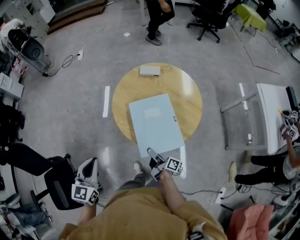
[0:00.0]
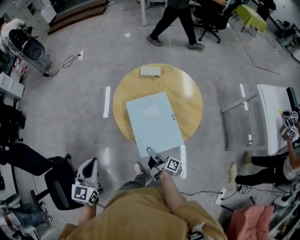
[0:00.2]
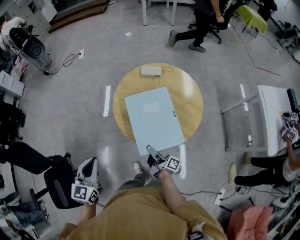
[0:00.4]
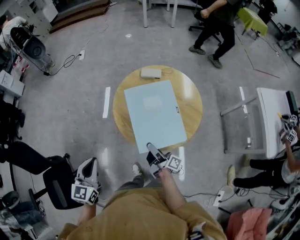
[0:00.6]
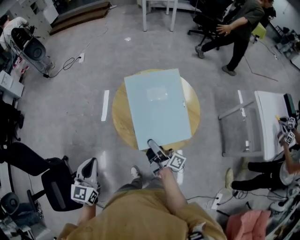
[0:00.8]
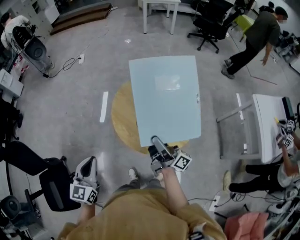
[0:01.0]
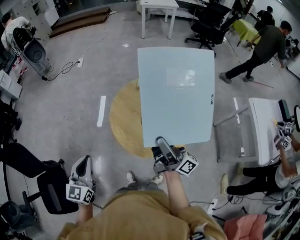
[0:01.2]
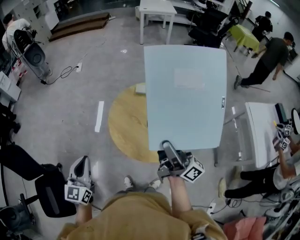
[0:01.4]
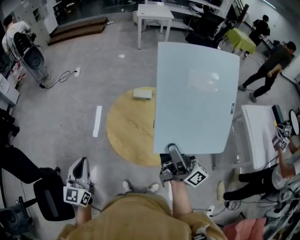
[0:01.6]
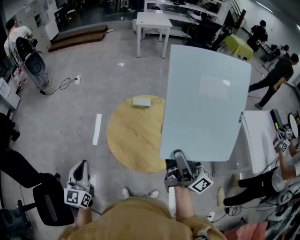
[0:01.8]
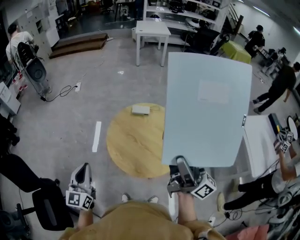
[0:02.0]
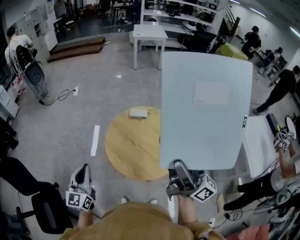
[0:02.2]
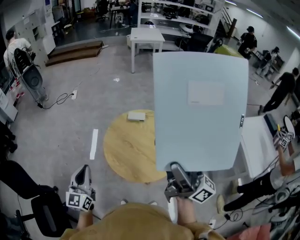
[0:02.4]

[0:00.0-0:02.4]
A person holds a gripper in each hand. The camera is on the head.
0:00.0 to 0:01.2: The right gripper goes about 35 cm upward, and points its fingers some 30 degrees further upward, while the left gripper heads upward, covering approximately 5 cm.
0:01.2 to 0:02.4: The right gripper travels upward and backward by about 20 cm, and changes its angle by some 20 degrees. The left gripper is displaced upward by approximately 5 cm.

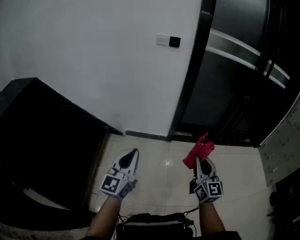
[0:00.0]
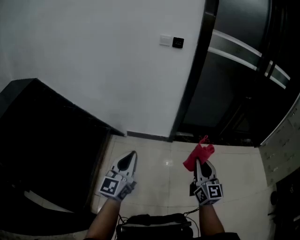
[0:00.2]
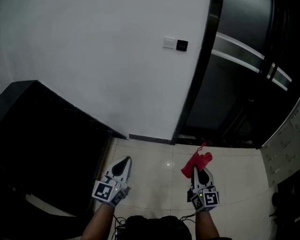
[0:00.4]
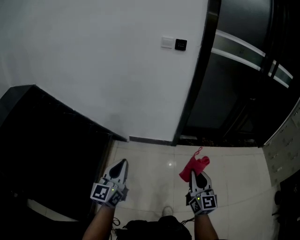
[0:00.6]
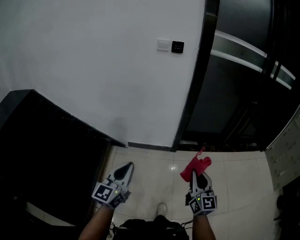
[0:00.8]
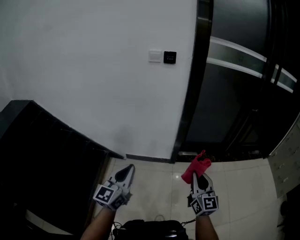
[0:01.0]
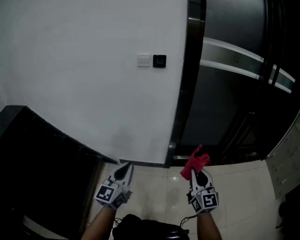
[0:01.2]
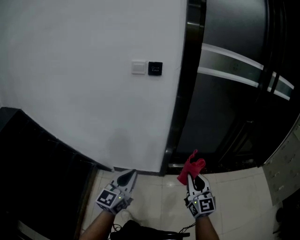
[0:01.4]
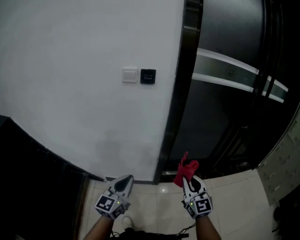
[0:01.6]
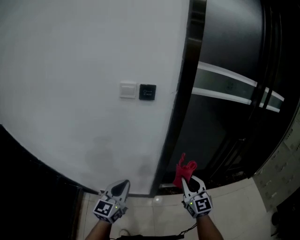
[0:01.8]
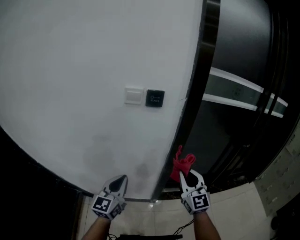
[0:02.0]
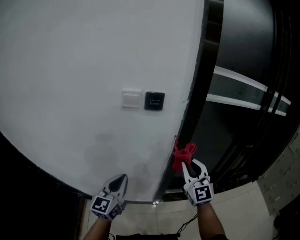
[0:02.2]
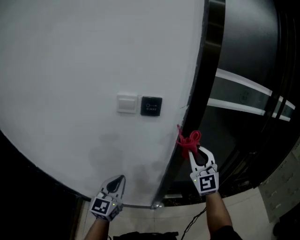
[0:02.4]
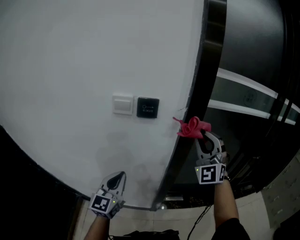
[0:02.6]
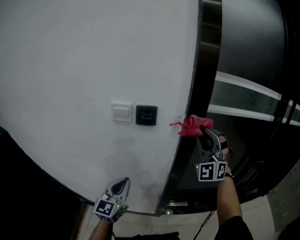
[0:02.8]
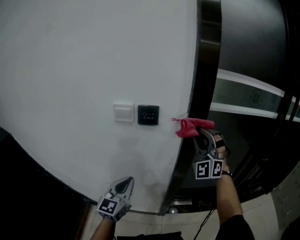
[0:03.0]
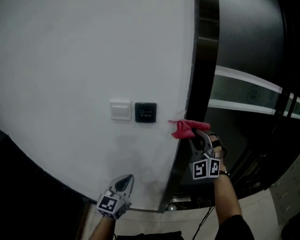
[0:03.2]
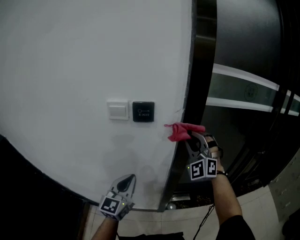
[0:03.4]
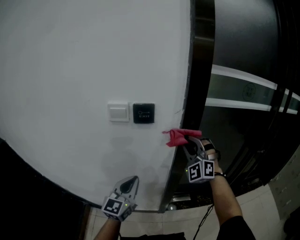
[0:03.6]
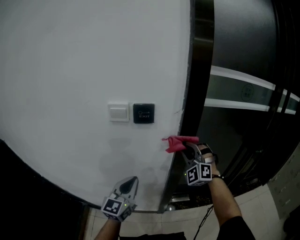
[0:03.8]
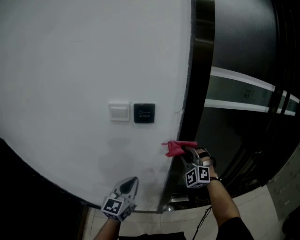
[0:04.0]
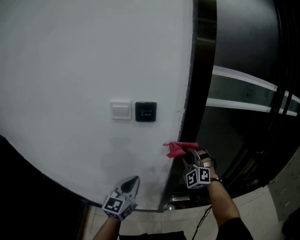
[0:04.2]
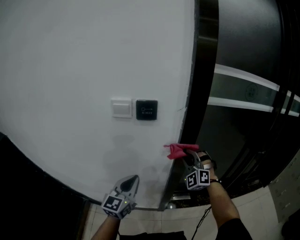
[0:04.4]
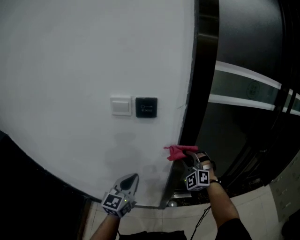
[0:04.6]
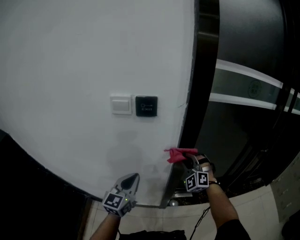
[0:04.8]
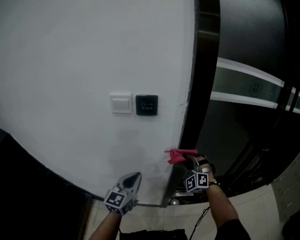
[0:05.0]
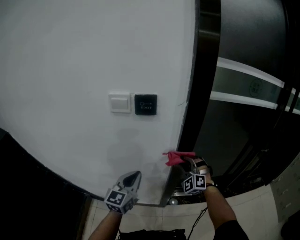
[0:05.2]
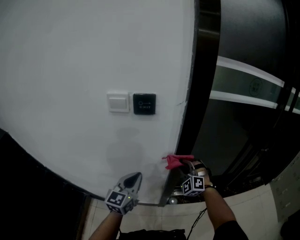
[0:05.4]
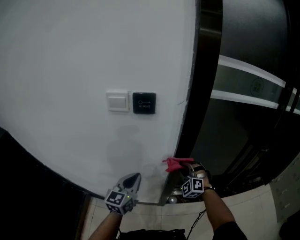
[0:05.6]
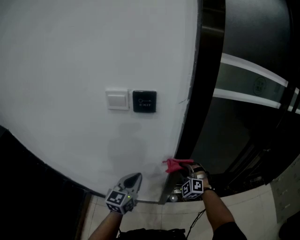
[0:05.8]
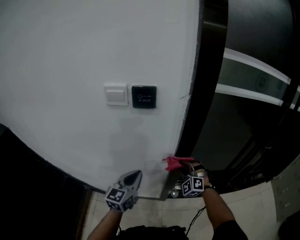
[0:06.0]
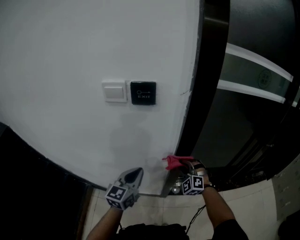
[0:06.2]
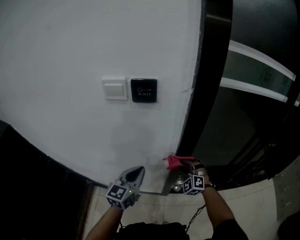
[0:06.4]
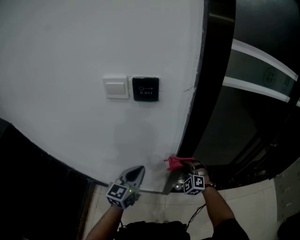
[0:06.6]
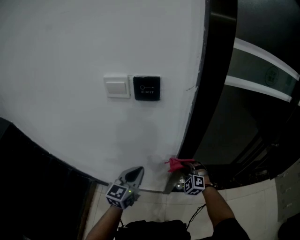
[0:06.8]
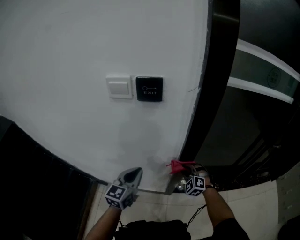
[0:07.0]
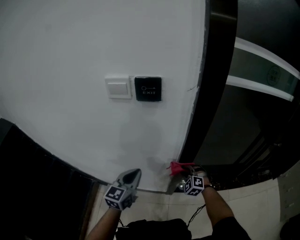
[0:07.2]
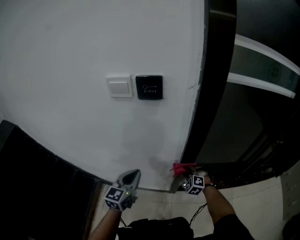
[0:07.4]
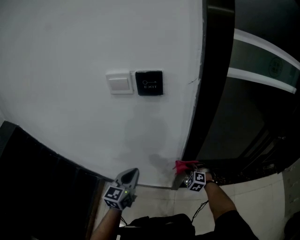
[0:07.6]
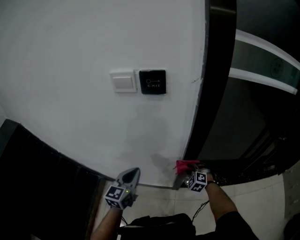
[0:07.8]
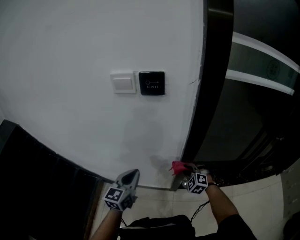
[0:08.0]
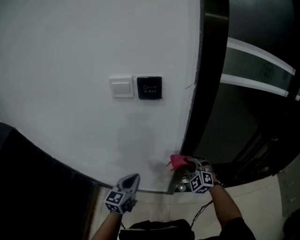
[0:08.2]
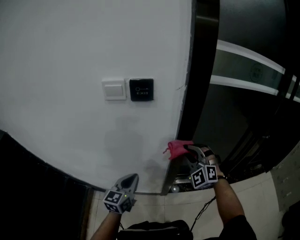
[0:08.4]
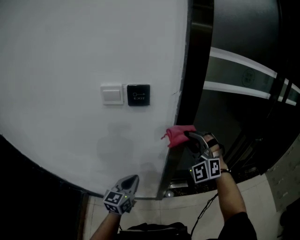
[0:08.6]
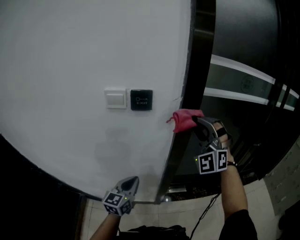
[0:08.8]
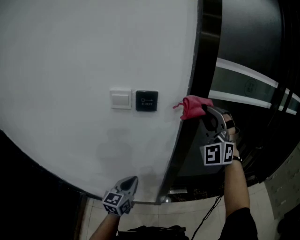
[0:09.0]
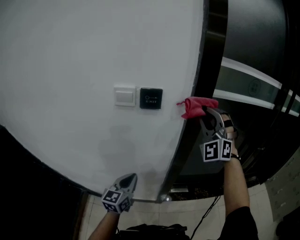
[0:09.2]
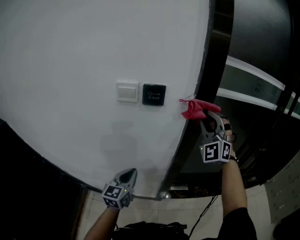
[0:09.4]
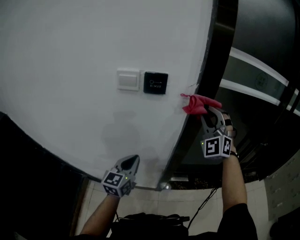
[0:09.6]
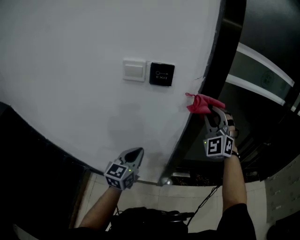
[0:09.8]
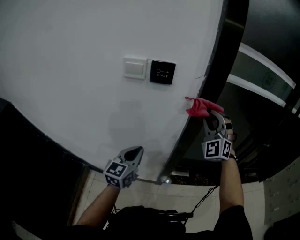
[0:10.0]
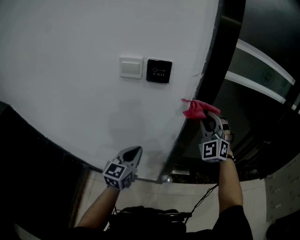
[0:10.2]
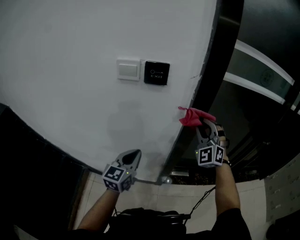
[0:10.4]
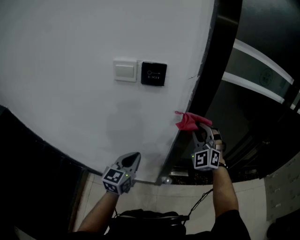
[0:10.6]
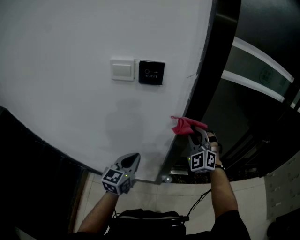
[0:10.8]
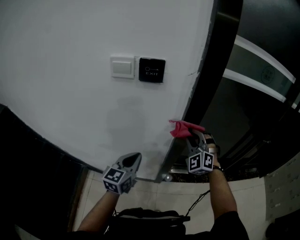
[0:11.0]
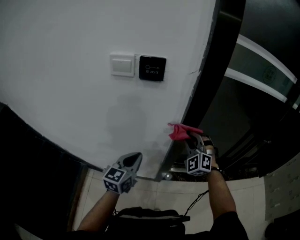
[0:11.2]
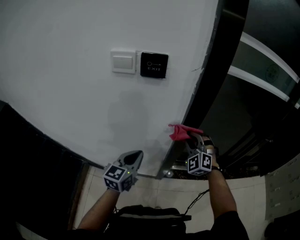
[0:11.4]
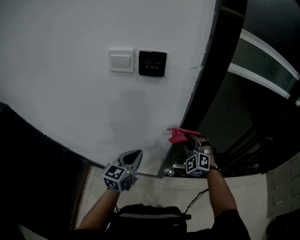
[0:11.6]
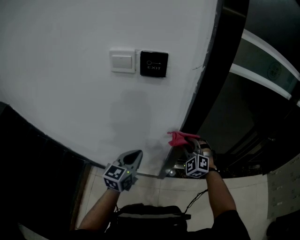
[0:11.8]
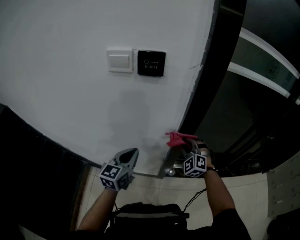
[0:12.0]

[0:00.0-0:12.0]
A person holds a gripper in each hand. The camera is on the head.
0:00.0 to 0:01.6: The two grippers go about 35 cm forward.
0:01.6 to 0:03.0: The left gripper moves forward, about 25 cm, while the right gripper moves forward and upward, approximately 40 cm, and rotates around the line of its fingers by approximately 60 degrees, counterclockwise from behind.
0:03.0 to 0:04.4: The right gripper moves downward, some 15 cm, and rotates approximately 20 degrees.
0:04.4 to 0:06.0: The left gripper travels downward by some 5 cm; the right gripper heads downward, covering some 15 cm.
0:06.0 to 0:07.6: The right gripper goes approximately 15 cm downward, and turns by some 20 degrees. The left gripper is displaced to the left by some 5 cm.
0:07.6 to 0:09.0: The right gripper heads upward, covering about 50 cm, and angles its fingers upward, by about 60 degrees.
0:09.0 to 0:10.4: The right gripper moves downward, some 20 cm, and changes its angle by about 20 degrees.
0:10.4 to 0:12.0: The right gripper moves downward, approximately 20 cm, and swivels about 30 degrees.

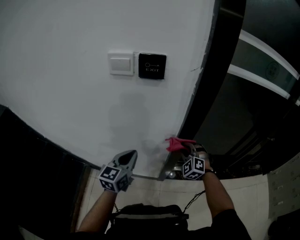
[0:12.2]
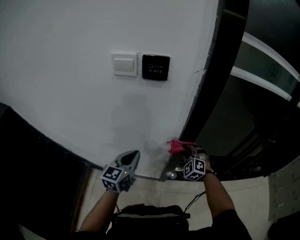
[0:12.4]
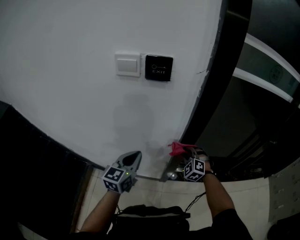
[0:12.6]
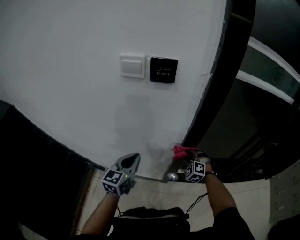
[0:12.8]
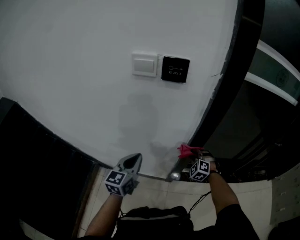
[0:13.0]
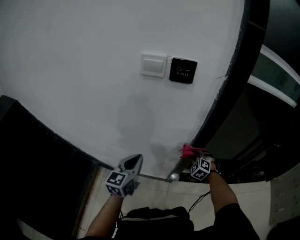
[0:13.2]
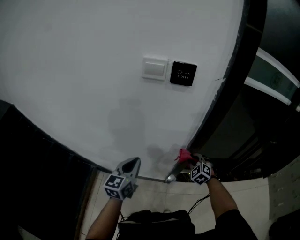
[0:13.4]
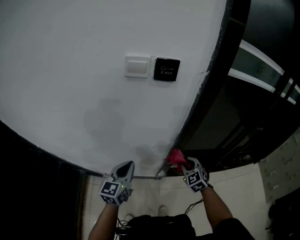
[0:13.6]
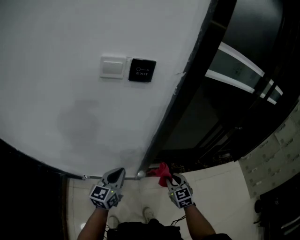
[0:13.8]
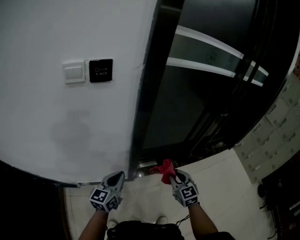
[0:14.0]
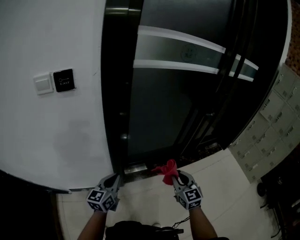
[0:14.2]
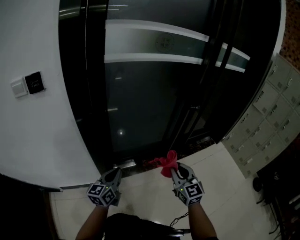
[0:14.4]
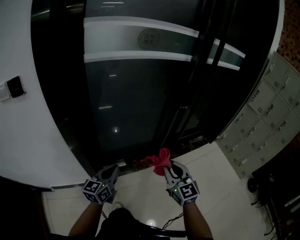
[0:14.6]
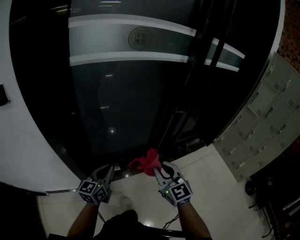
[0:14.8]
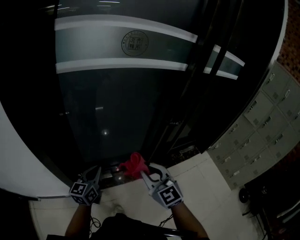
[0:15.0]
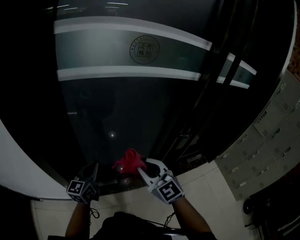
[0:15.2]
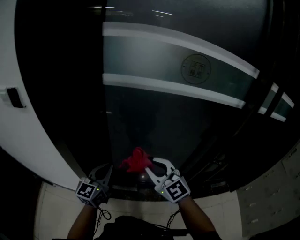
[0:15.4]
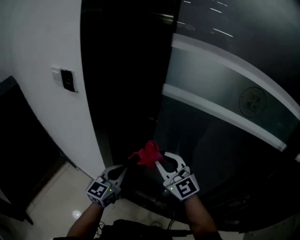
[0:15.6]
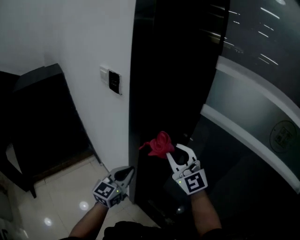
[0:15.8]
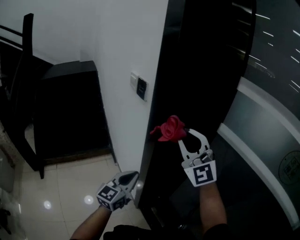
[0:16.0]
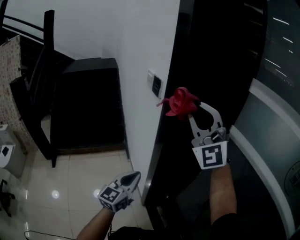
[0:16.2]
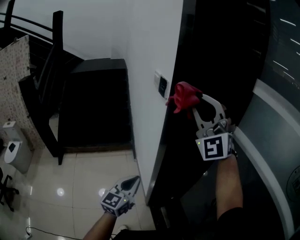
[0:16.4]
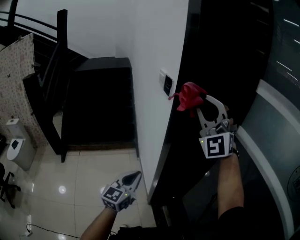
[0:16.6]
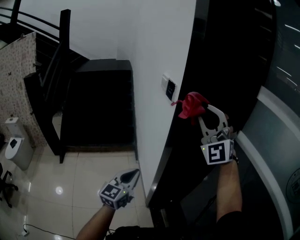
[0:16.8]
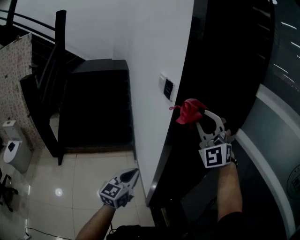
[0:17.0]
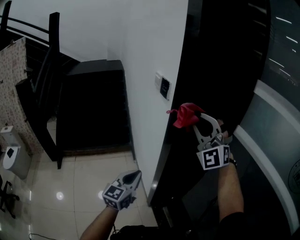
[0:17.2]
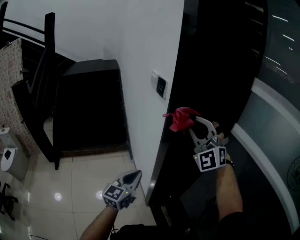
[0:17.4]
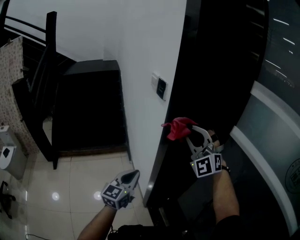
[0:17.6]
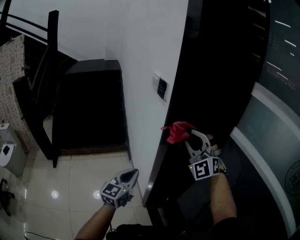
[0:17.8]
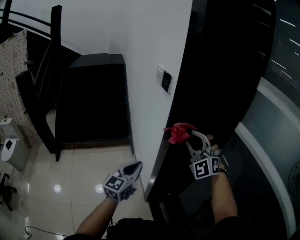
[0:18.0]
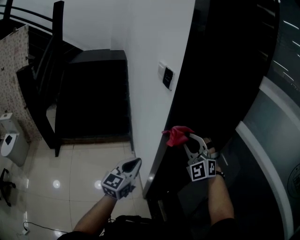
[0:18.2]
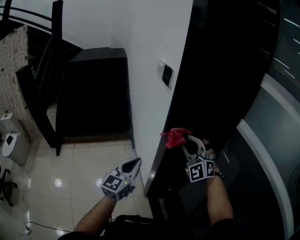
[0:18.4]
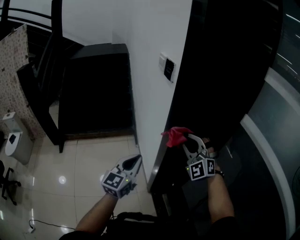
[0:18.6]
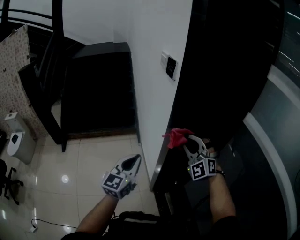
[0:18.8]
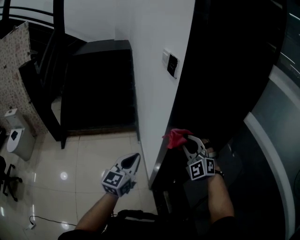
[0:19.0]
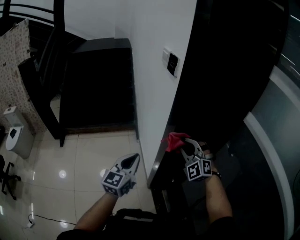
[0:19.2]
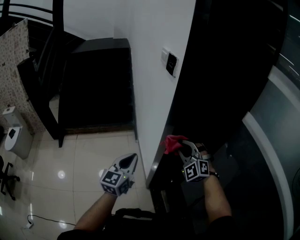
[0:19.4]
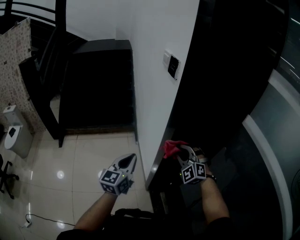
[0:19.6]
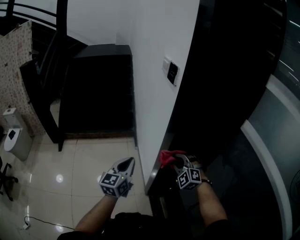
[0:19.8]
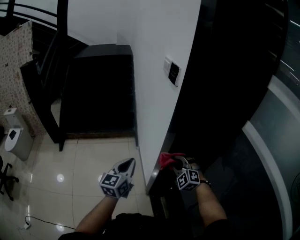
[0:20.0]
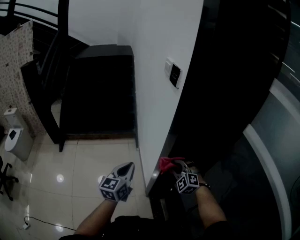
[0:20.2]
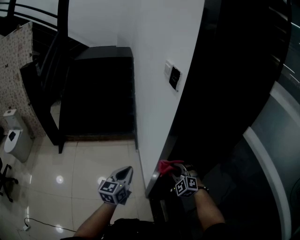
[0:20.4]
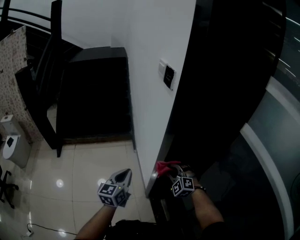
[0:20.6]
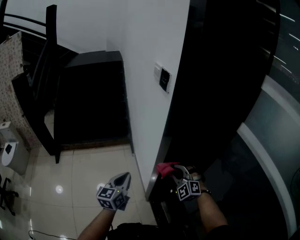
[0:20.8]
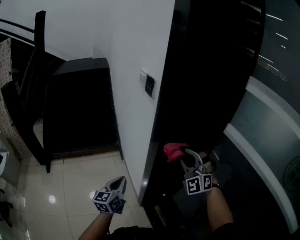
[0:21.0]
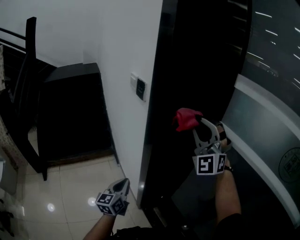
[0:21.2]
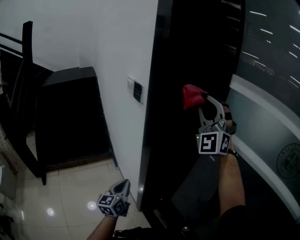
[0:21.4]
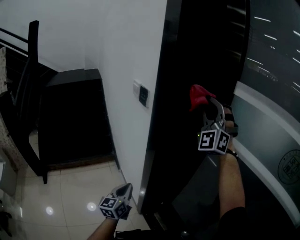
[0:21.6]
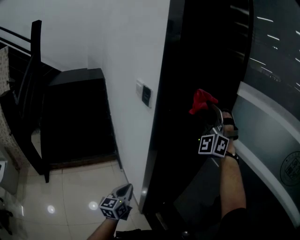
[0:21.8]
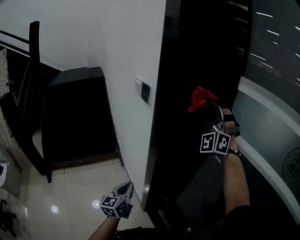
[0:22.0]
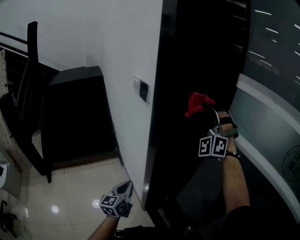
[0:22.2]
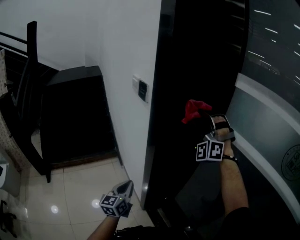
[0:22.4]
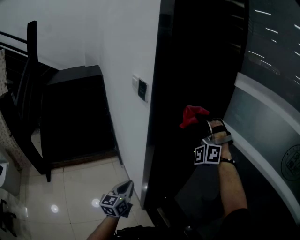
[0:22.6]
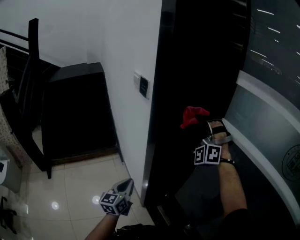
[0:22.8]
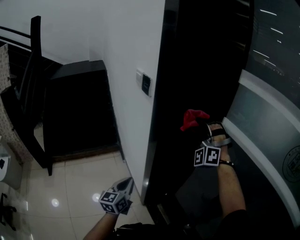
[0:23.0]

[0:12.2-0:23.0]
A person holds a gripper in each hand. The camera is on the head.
0:12.2 to 0:13.8: The left gripper goes roughly 5 cm backward, and moves some 10 cm to the left and comes back; the right gripper goes some 20 cm backward, and rolls clockwise, seen from behind, by about 50 degrees.
0:13.8 to 0:15.2: Both grippers are carried to the right and forward, some 50 cm. The right gripper moves upward, some 15 cm, and changes its angle by roughly 20 degrees.
0:15.2 to 0:16.8: The left gripper moves about 25 cm, and rotates roughly 80 degrees. Meanwhile the right gripper shifts by some 50 cm, and swivels roughly 90 degrees.
0:16.8 to 0:18.4: The right gripper shifts about 20 cm downward, and turns by some 20 degrees.
0:18.4 to 0:20.0: The right gripper shifts some 20 cm downward, and turns by about 30 degrees. The left gripper ends up about 5 cm from where it was.
0:20.0 to 0:21.4: The left gripper moves to the right, some 5 cm; the right gripper moves upward, about 40 cm, and points its fingers roughly 50 degrees further upward.
0:21.4 to 0:23.0: The right gripper goes some 15 cm downward, and turns by approximately 30 degrees.
